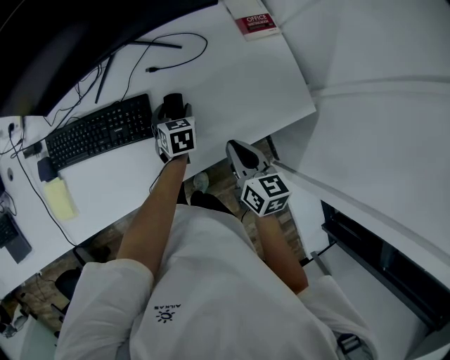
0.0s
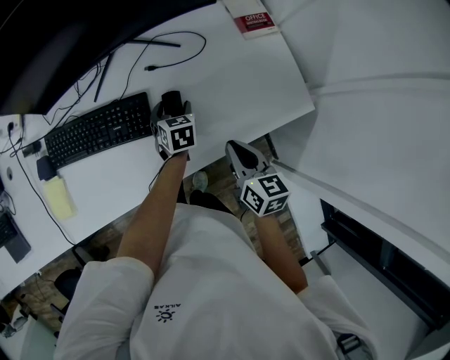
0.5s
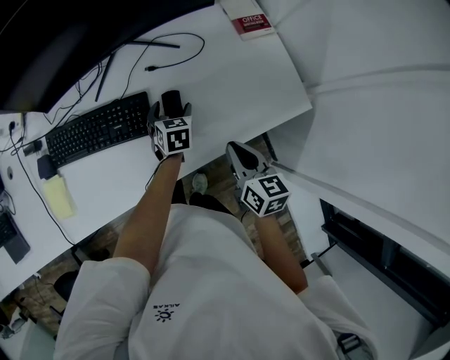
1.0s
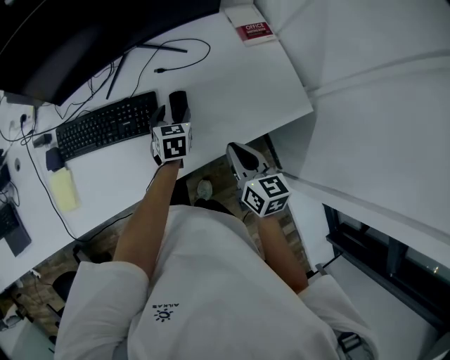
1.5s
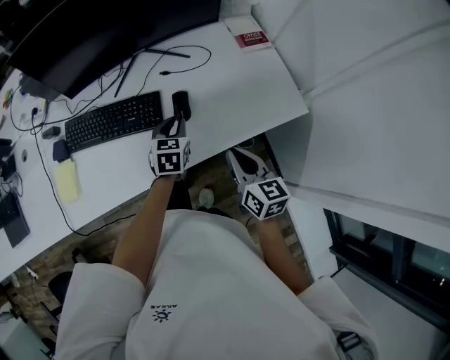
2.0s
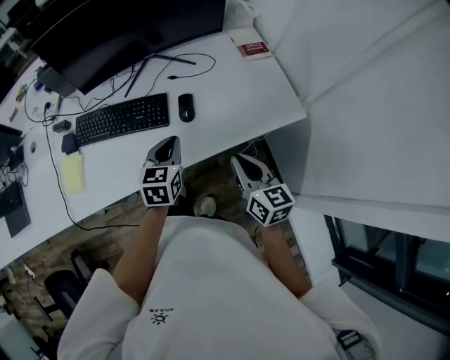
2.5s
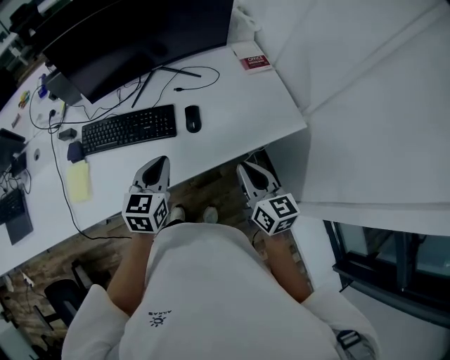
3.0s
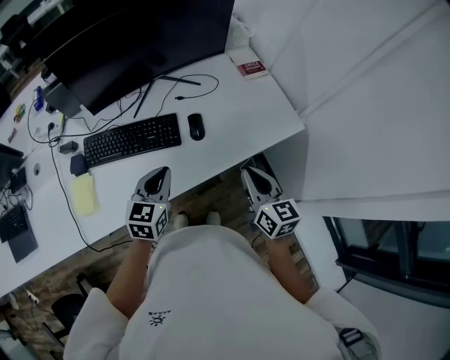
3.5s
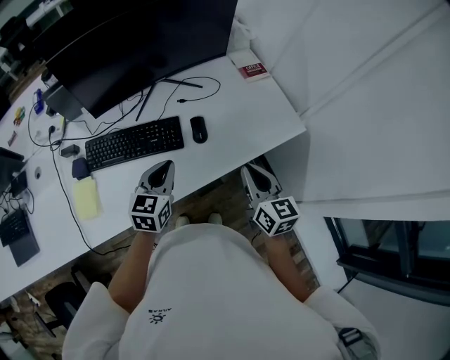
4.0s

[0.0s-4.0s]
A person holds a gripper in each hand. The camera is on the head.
0.0s to 2.0s: The left gripper heads upward and backward, covering roughly 15 cm, and closes its fingers, while the right gripper travels backward by roughly 5 cm.
2.0s to 4.0s: The right gripper goes roughly 5 cm upward. Meanwhile the left gripper is displaced upward, to the left and backward by approximately 20 cm.

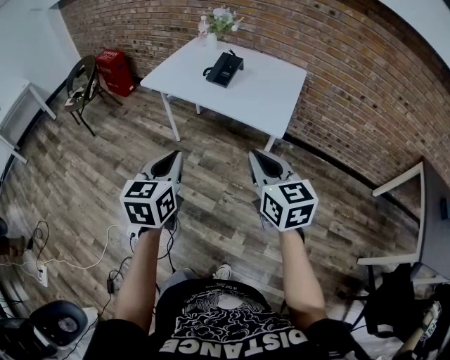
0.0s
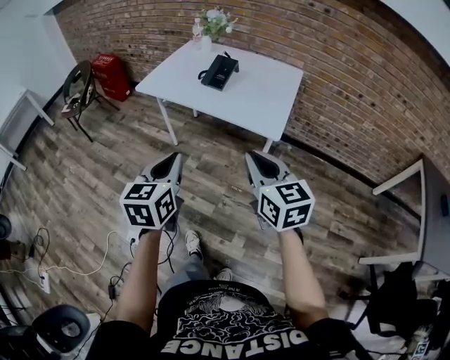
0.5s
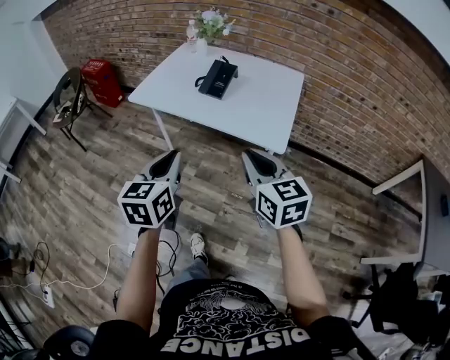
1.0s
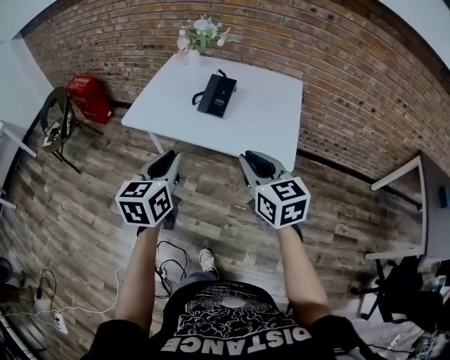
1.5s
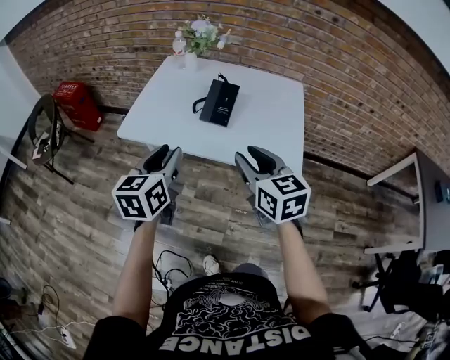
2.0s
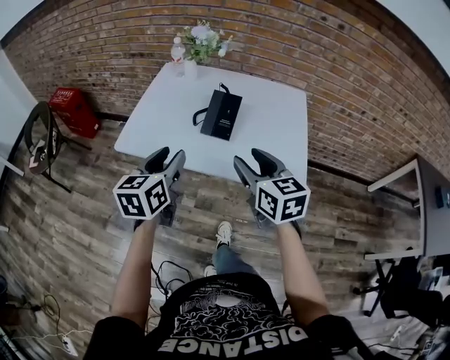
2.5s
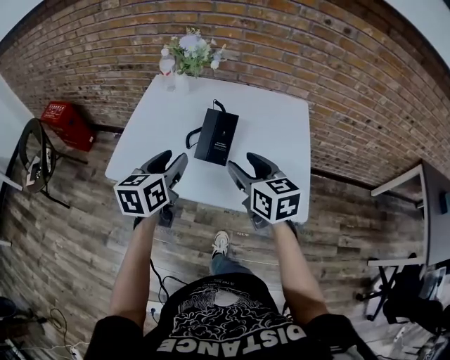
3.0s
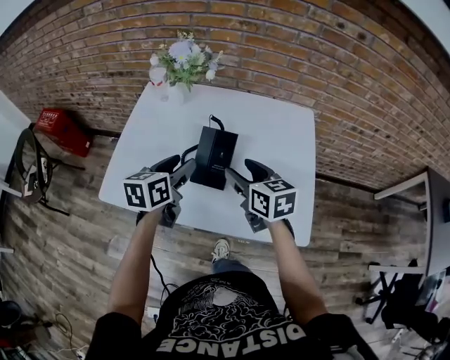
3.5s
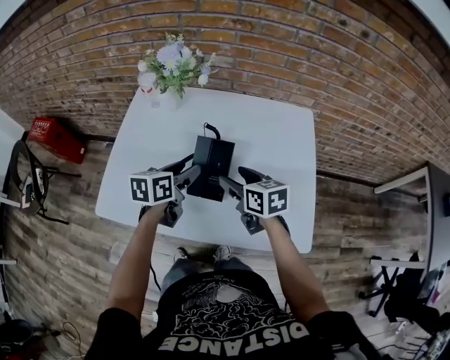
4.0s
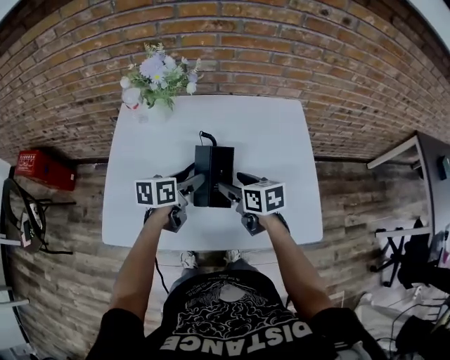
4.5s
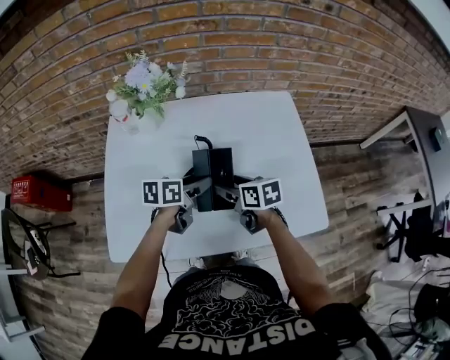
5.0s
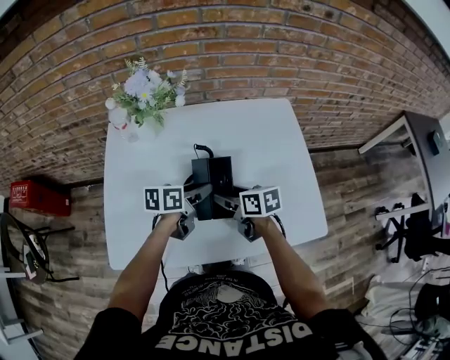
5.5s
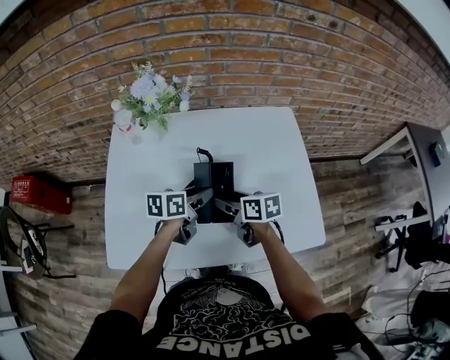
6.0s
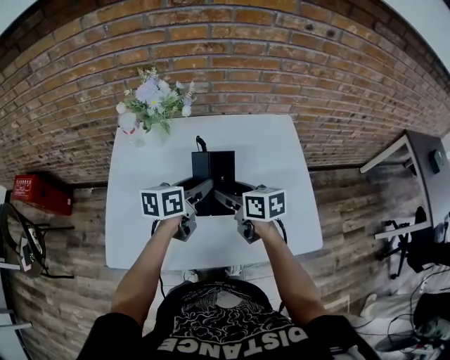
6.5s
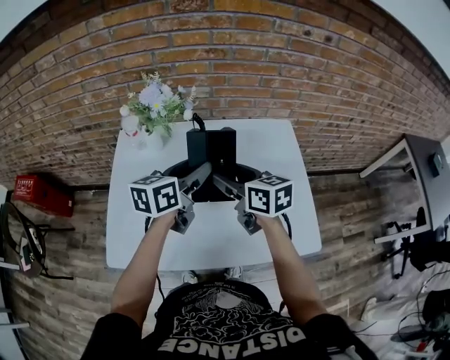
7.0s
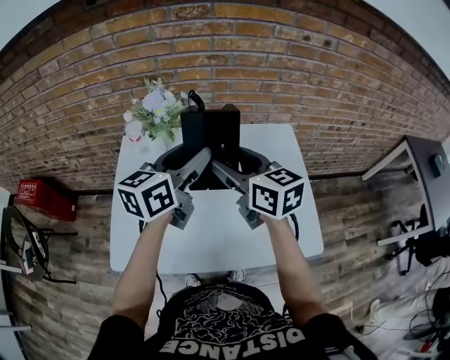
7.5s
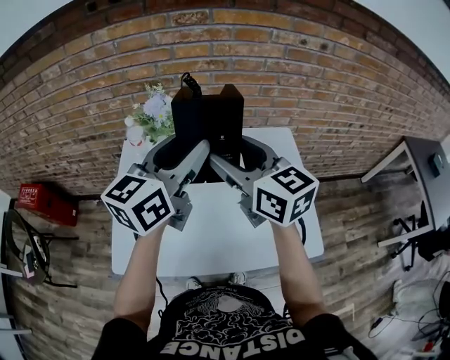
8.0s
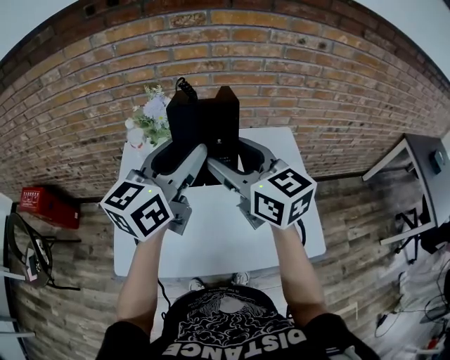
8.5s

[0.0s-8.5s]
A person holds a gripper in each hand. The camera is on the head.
0.0s to 2.0s: The two grippers go roughly 30 cm forward. The left gripper opens; the right gripper opens up.
2.0s to 4.0s: The left gripper goes roughly 35 cm forward, rotates some 30 degrees, and opens. The right gripper heads forward and downward, covering approximately 35 cm, turns by approximately 20 degrees, and opens.
4.0s to 6.5s: The left gripper reaches roughly 5 cm downward, then returns. Meanwhile the right gripper travels downward and back again, approximately 5 cm each way.
6.5s to 8.5s: The grippers both shift upward by about 25 cm. The left gripper swivels approximately 40 degrees. The right gripper changes its angle by roughly 40 degrees.

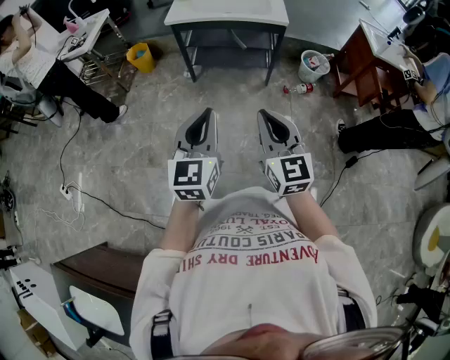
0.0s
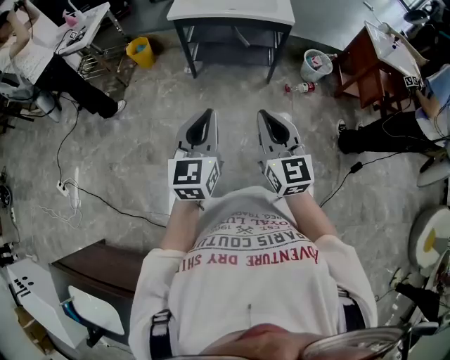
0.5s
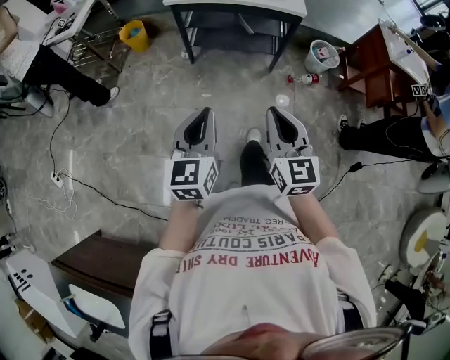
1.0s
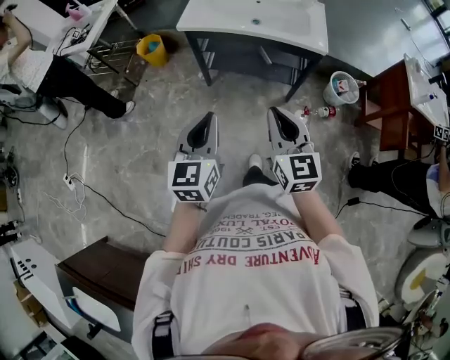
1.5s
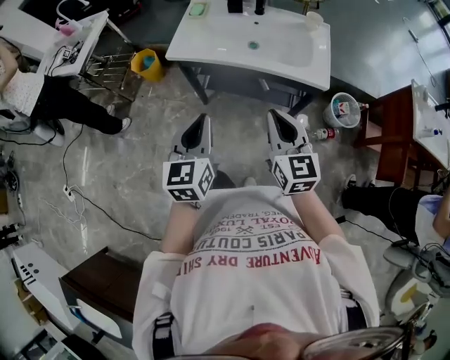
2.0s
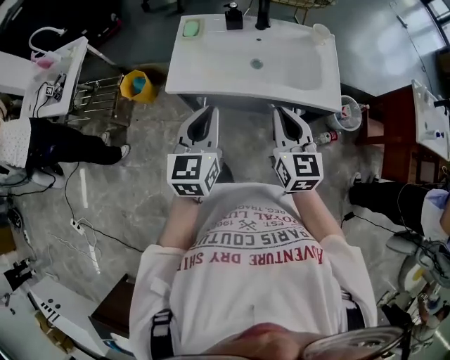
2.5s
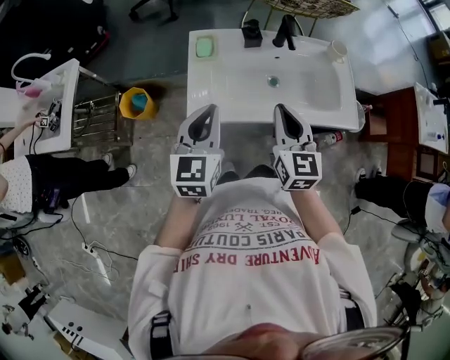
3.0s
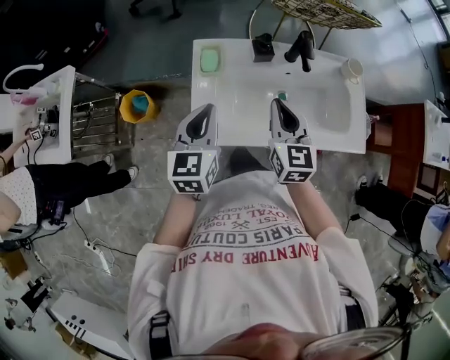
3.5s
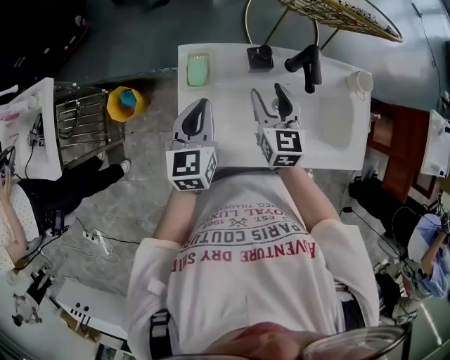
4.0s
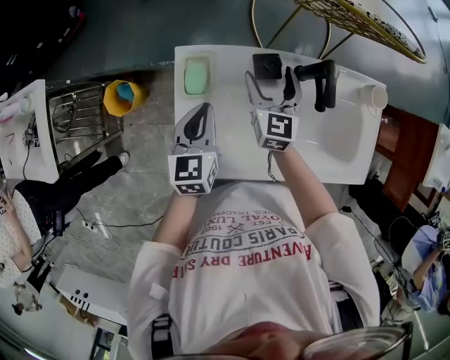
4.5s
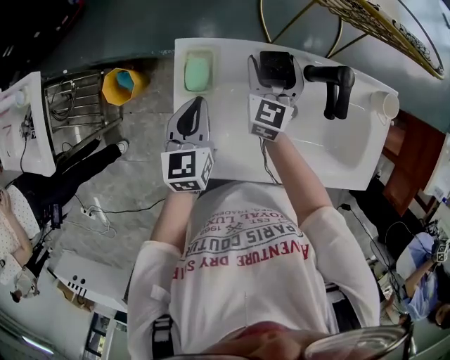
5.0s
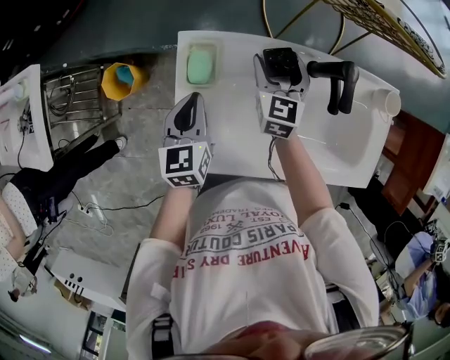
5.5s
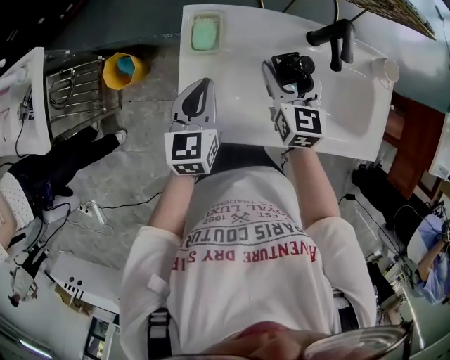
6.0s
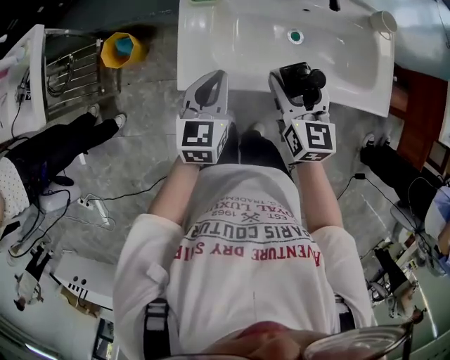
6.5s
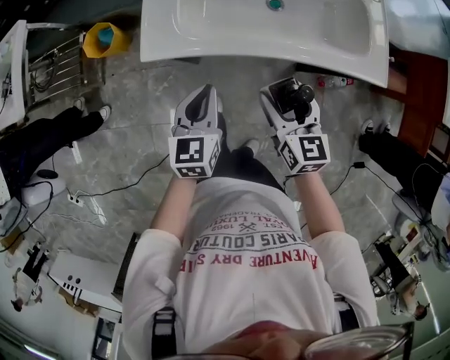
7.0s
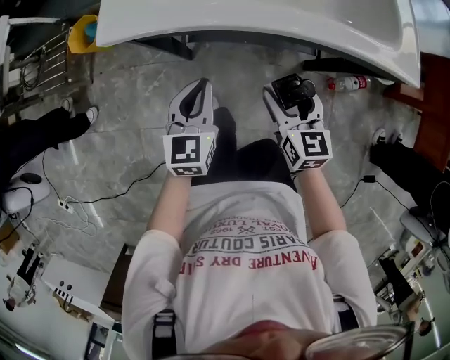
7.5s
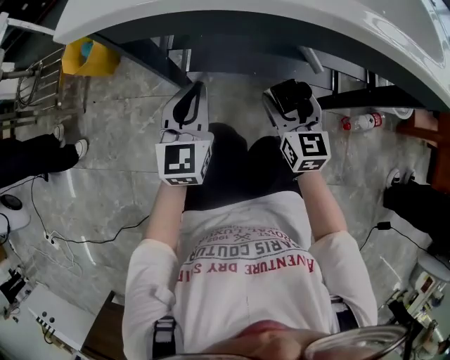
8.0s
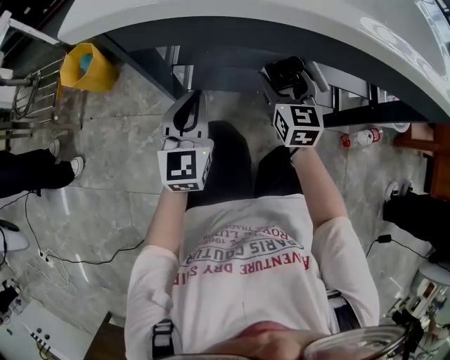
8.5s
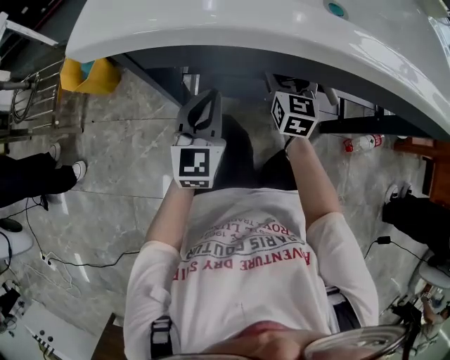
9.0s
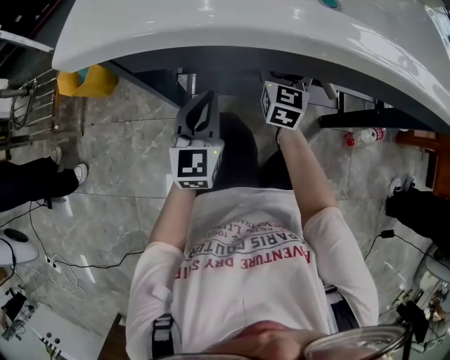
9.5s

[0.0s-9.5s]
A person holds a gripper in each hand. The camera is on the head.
0.0s to 2.0s: Both grippers are carried forward, about 50 cm.
2.0s to 4.0s: Both grippers are carried forward, roughly 50 cm. The right gripper turns by roughly 20 degrees, and opens up.
4.0s to 5.5s: The right gripper heads forward and downward, covering roughly 15 cm, and opens up, while the left gripper is displaced downward by some 10 cm.
5.5s to 7.5s: The right gripper heads backward, covering roughly 40 cm, while the left gripper heads backward and downward, covering about 35 cm.
7.5s to 9.5s: The right gripper travels forward and downward by some 30 cm, and turns by roughly 20 degrees; the left gripper goes roughly 20 cm downward and forward.

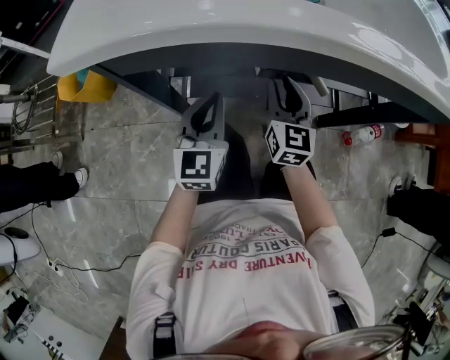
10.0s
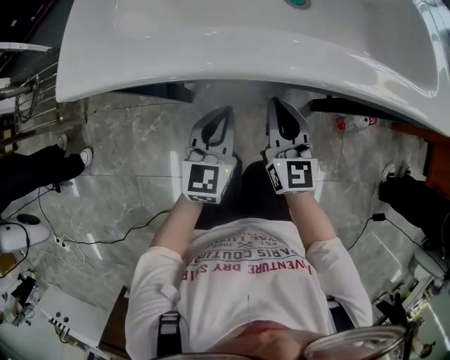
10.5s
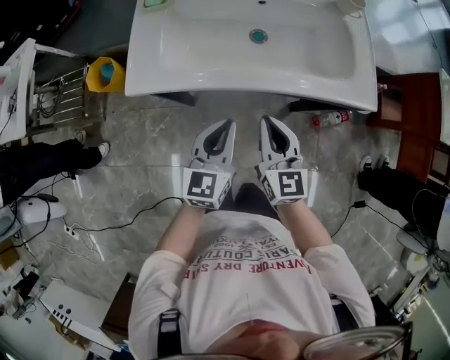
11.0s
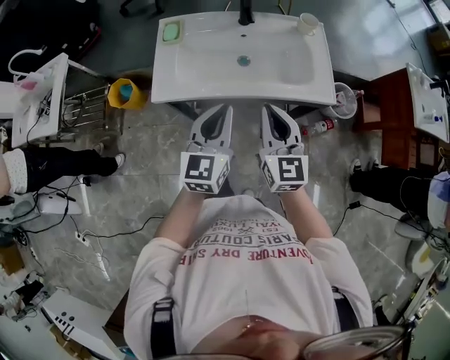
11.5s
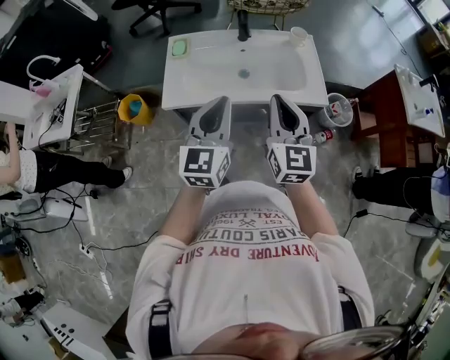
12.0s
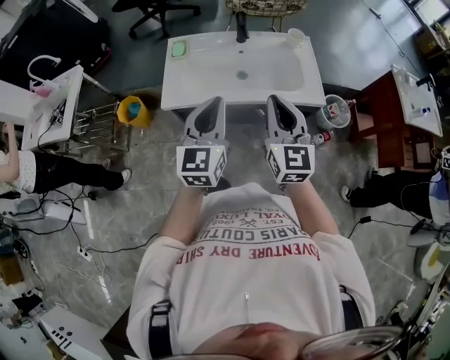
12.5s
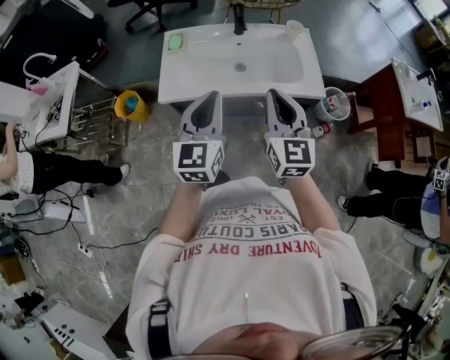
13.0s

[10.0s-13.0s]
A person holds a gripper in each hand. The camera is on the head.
10.0s to 11.5s: The grippers both shift upward by approximately 50 cm.
11.5s to 13.0s: The grippers both shift upward by roughly 10 cm.

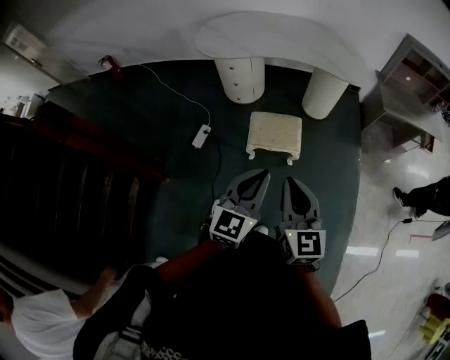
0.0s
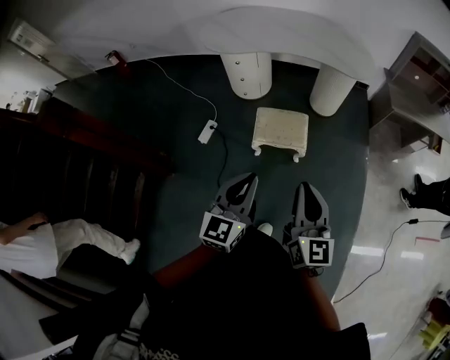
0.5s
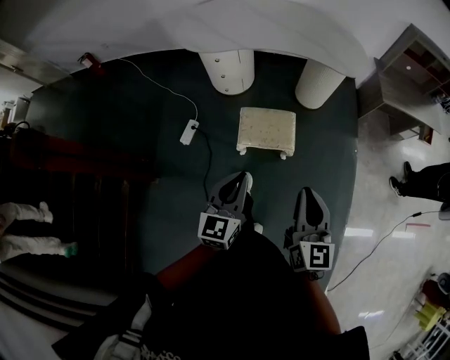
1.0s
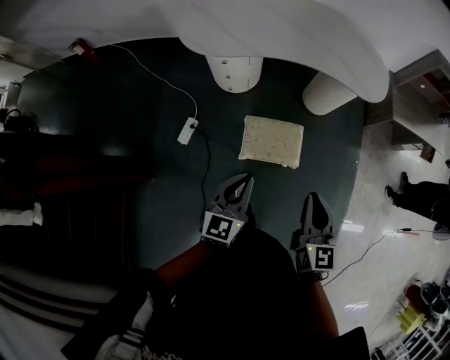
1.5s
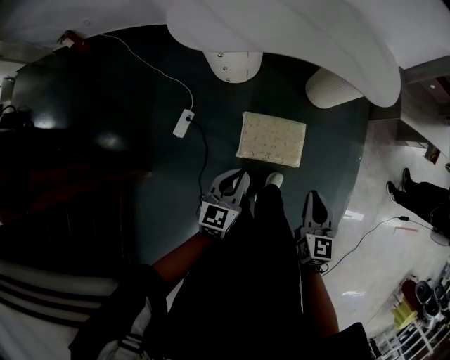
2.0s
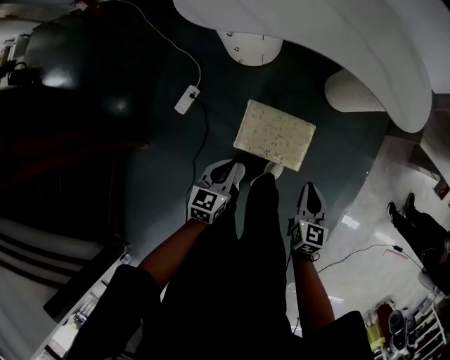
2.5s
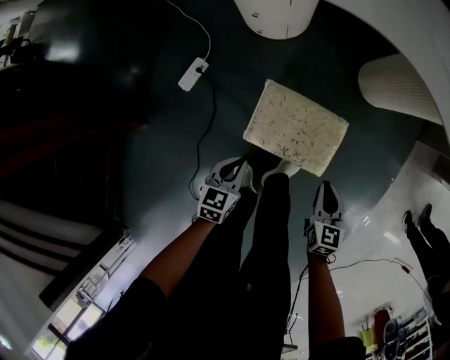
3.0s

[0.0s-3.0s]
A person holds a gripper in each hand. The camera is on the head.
0.0s to 1.5s: The right gripper heads forward, covering about 25 cm; the left gripper moves forward, downward and to the left, about 30 cm.
1.5s to 3.0s: The grippers both shift downward by approximately 40 cm. The left gripper turns by roughly 30 degrees. The right gripper changes its angle by about 30 degrees.
